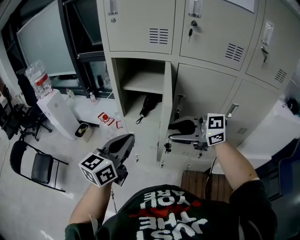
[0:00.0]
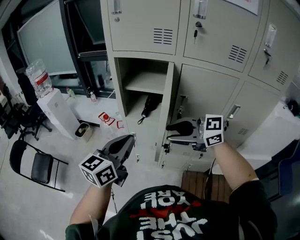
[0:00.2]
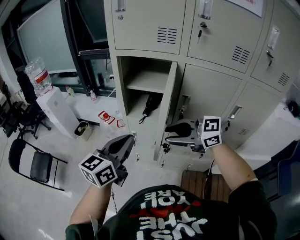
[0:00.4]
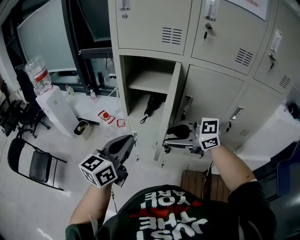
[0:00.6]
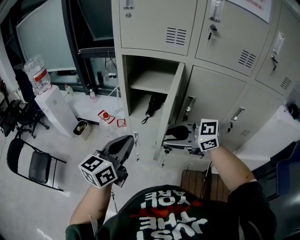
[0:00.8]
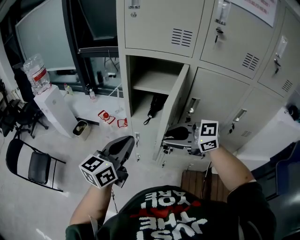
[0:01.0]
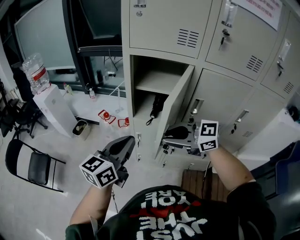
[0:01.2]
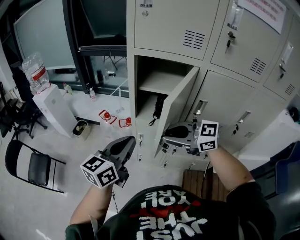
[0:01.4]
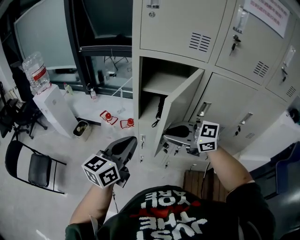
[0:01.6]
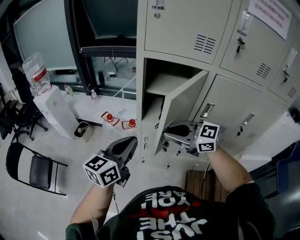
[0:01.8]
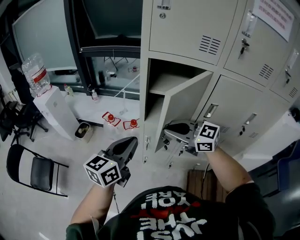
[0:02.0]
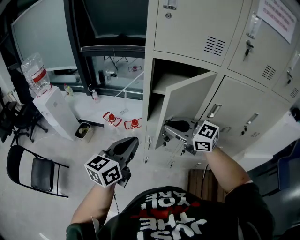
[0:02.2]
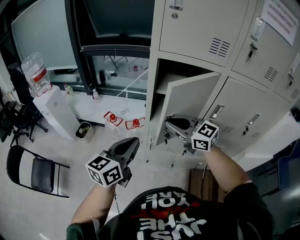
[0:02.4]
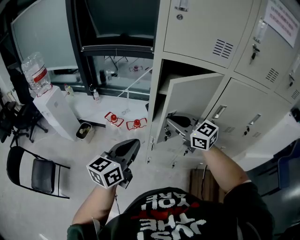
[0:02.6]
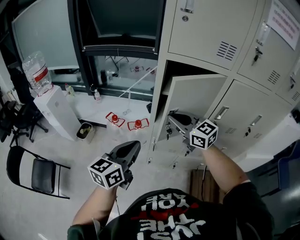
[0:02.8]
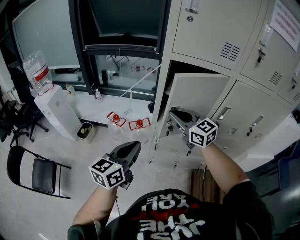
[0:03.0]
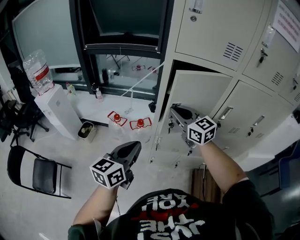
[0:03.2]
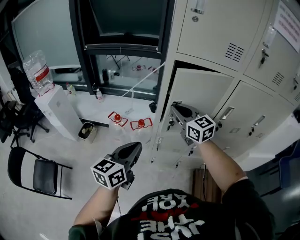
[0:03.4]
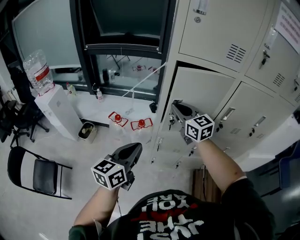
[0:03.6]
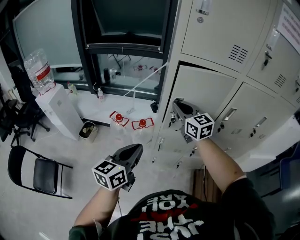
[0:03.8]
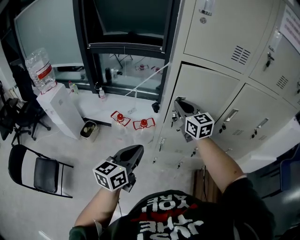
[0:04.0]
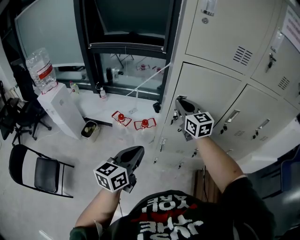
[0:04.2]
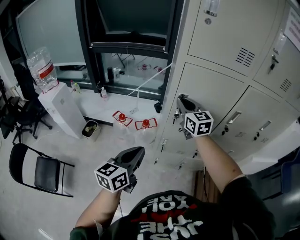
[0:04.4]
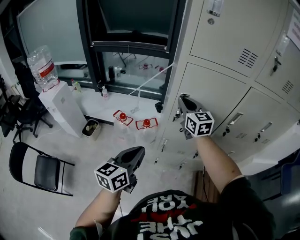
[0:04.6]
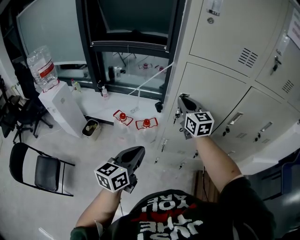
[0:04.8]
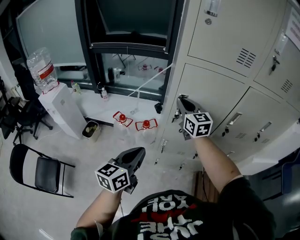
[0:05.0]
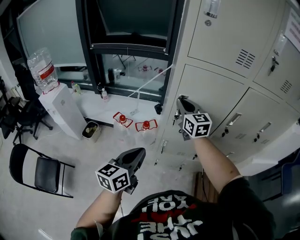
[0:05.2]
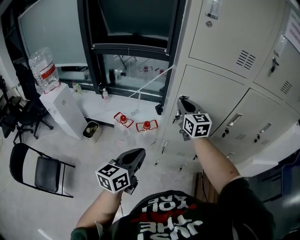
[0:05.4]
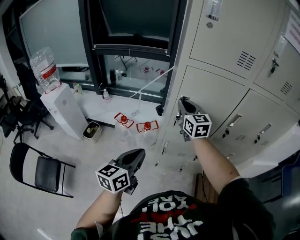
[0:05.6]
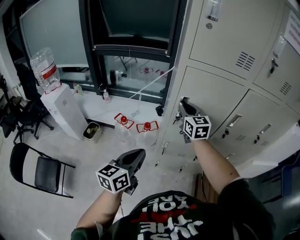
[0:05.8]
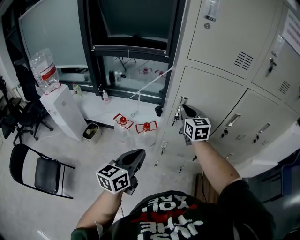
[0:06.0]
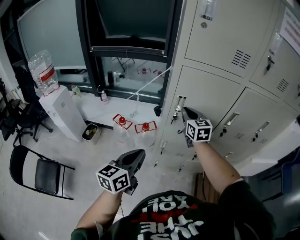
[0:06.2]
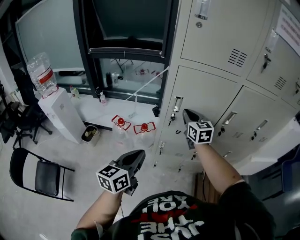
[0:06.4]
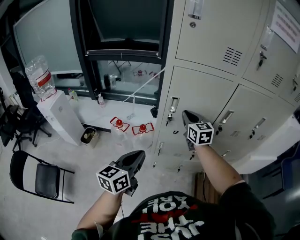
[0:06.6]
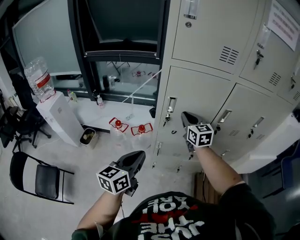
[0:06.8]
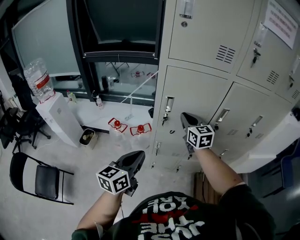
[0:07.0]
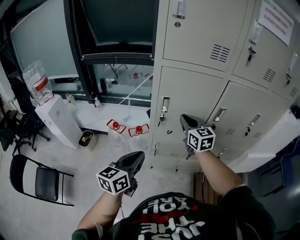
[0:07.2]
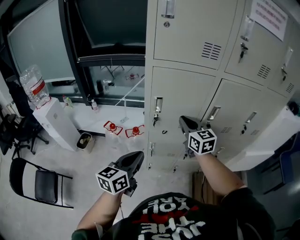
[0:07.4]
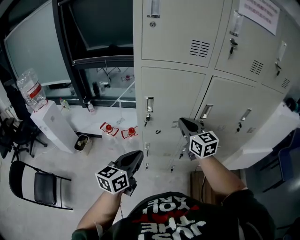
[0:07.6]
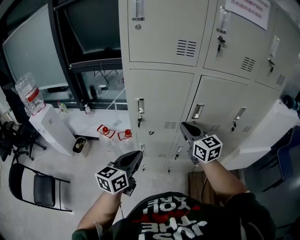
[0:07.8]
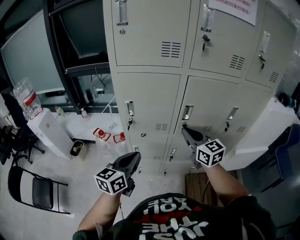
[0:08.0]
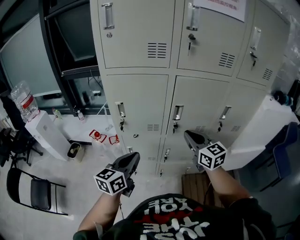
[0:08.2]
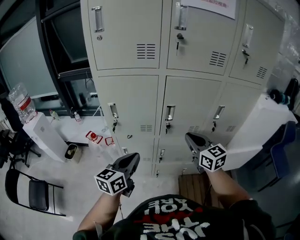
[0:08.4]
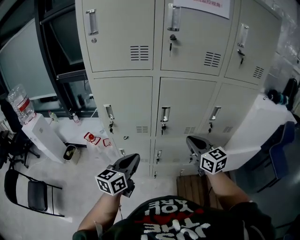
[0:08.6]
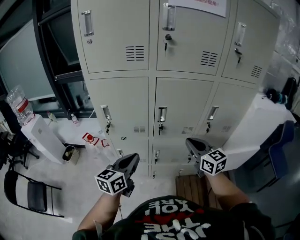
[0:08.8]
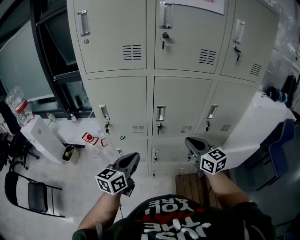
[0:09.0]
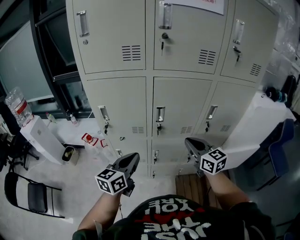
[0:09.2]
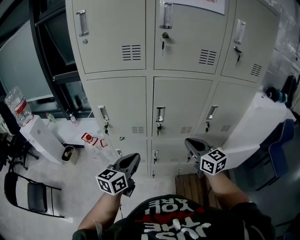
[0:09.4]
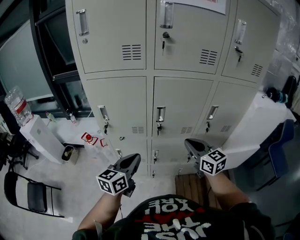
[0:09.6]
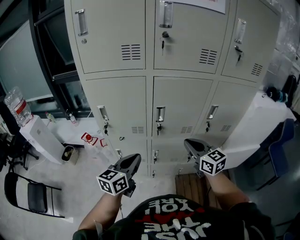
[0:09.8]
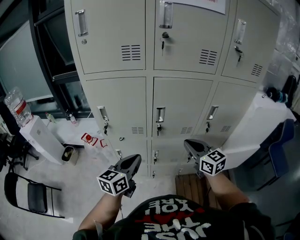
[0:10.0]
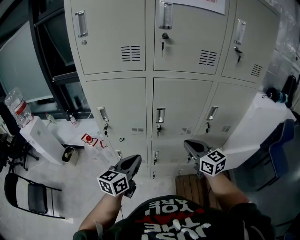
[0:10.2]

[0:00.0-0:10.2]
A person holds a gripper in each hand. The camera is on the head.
0.0 to 1.4 s: Both grippers move to the left and forward, roughly 10 cm. The right gripper closes up.
1.4 to 3.0 s: The left gripper goes approximately 15 cm to the left and forward, while the right gripper shifts about 15 cm forward, and changes its angle by some 40 degrees.
3.0 to 4.4 s: The right gripper moves forward, about 10 cm, and changes its angle by about 20 degrees.
4.4 to 5.8 s: The grippers make only small movements.
5.8 to 7.2 s: The right gripper shifts about 10 cm to the right and backward. The left gripper travels to the right by about 5 cm.
7.2 to 8.8 s: The grippers both shift to the right by approximately 30 cm.
8.8 to 10.2 s: The grippers stay close to where they were, moving slightly.

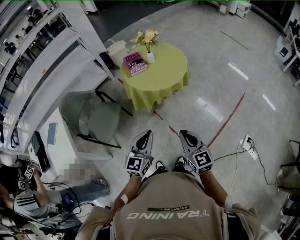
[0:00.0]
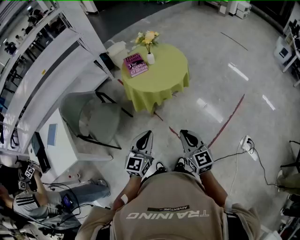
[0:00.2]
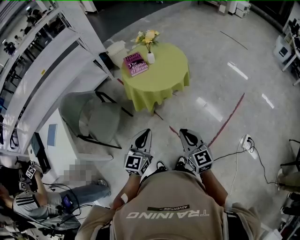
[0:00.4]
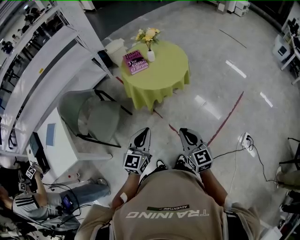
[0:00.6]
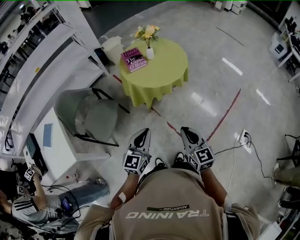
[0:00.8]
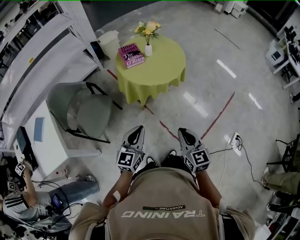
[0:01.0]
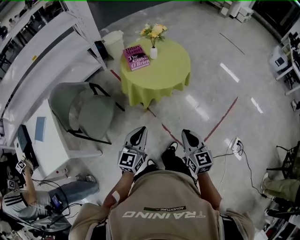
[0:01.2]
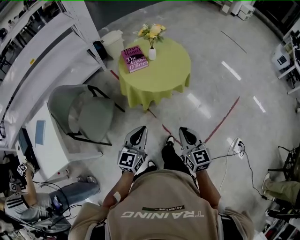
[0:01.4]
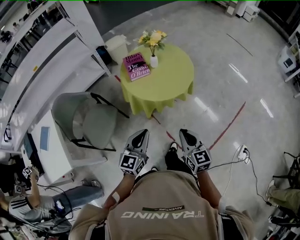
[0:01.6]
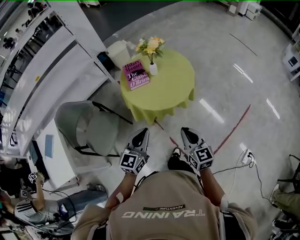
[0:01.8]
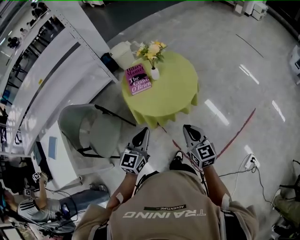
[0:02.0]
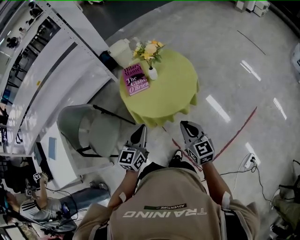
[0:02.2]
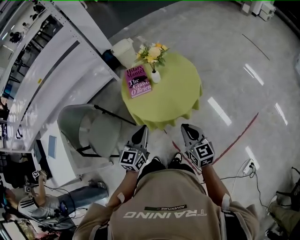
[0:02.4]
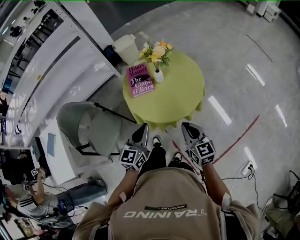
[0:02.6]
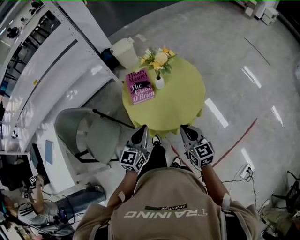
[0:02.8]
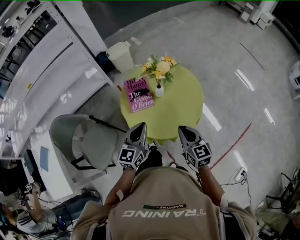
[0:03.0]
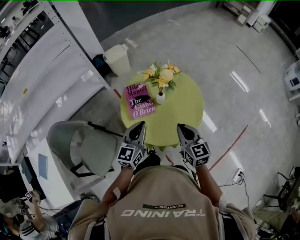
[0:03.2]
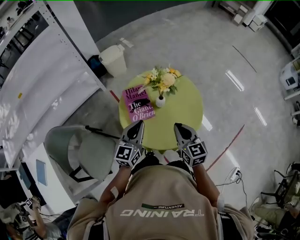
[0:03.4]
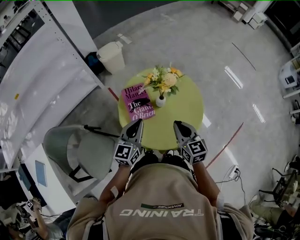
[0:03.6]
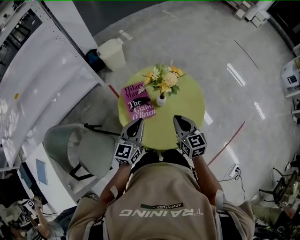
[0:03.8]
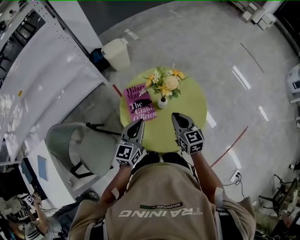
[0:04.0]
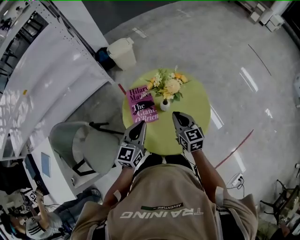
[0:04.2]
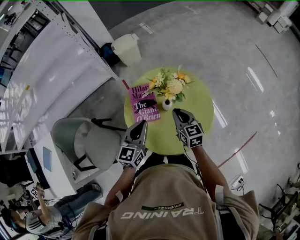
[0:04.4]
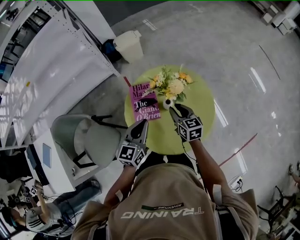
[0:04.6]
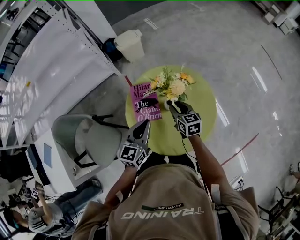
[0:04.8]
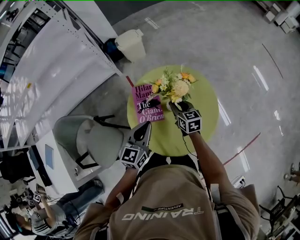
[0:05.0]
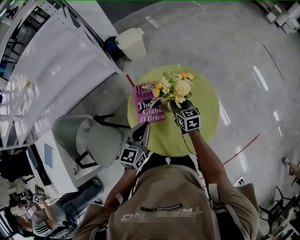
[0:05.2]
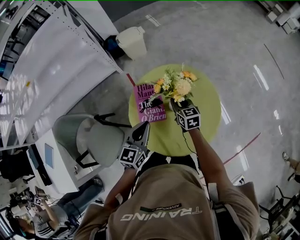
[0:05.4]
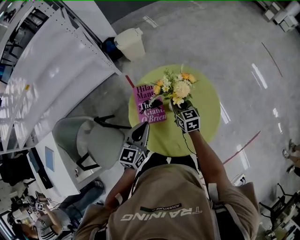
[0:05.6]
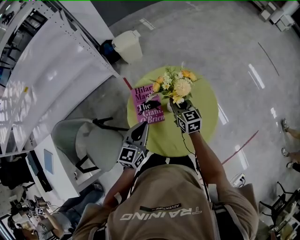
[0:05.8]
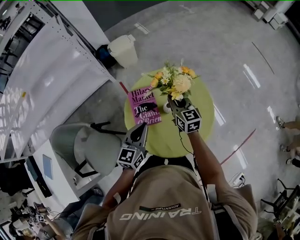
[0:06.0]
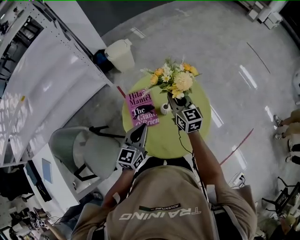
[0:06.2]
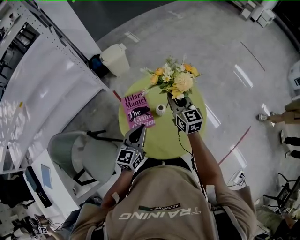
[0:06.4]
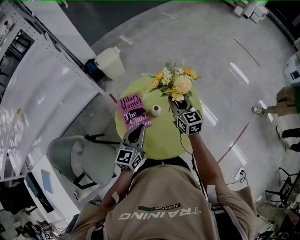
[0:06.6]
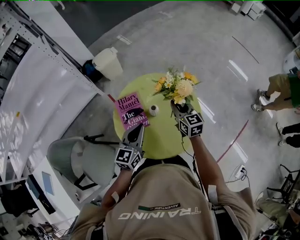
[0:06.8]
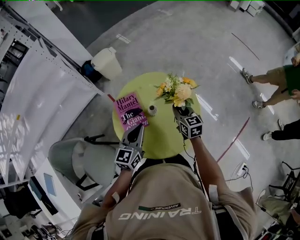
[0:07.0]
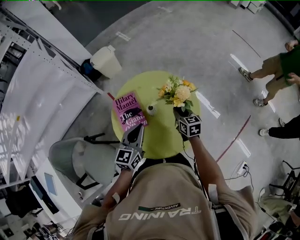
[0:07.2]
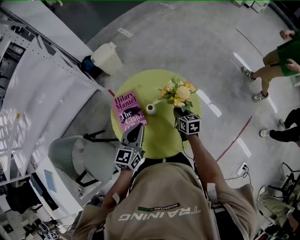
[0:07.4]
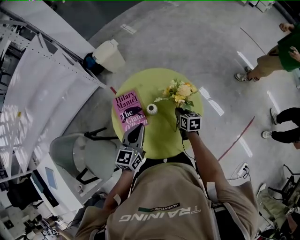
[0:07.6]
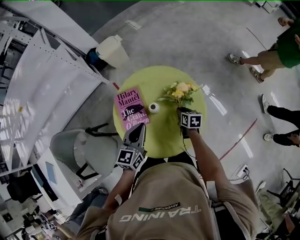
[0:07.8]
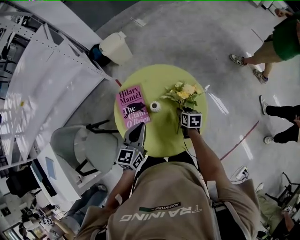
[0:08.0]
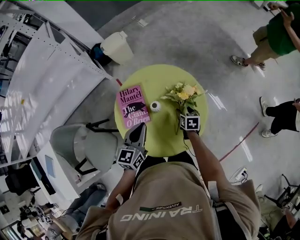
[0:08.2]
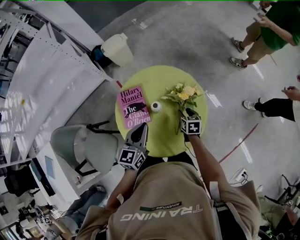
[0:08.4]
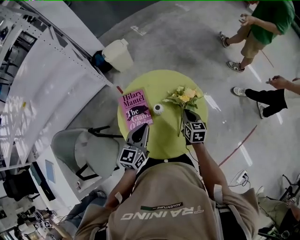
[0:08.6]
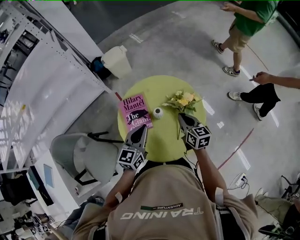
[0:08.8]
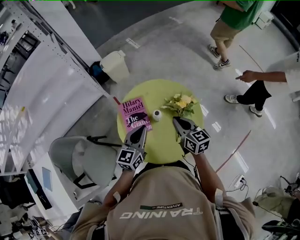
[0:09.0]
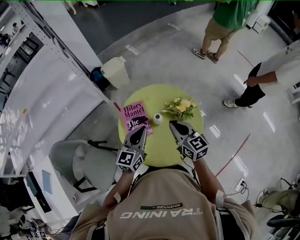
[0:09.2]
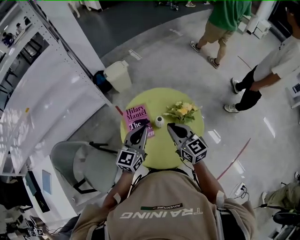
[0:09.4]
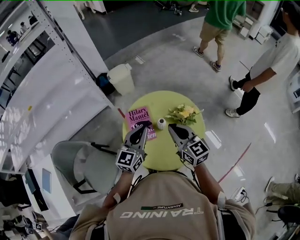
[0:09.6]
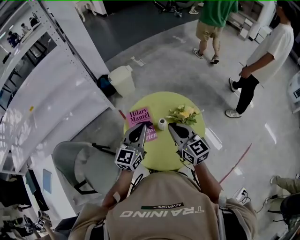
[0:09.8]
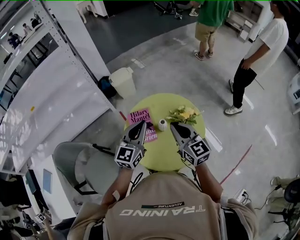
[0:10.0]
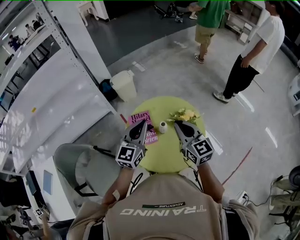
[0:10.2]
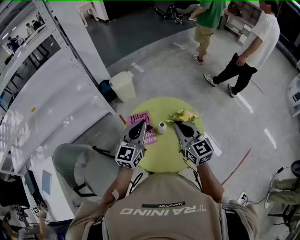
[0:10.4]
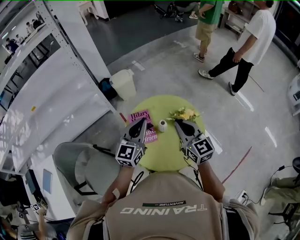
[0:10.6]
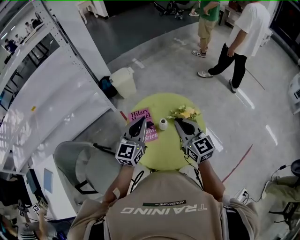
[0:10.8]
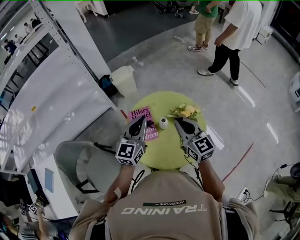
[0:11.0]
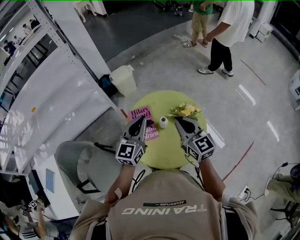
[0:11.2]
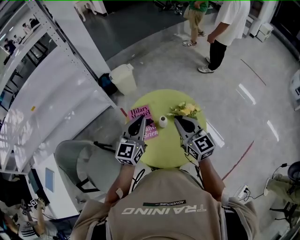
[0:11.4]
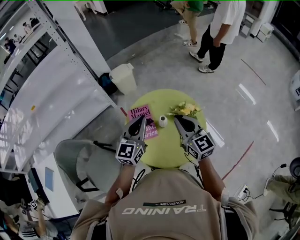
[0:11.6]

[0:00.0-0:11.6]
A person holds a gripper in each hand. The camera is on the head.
0.0 to 1.4 s: The left gripper moves forward and to the left, roughly 10 cm; the right gripper moves forward, approximately 10 cm.
1.4 to 2.8 s: The grippers both shift forward by approximately 30 cm.
2.8 to 4.4 s: Both grippers move forward, some 25 cm.
4.4 to 5.8 s: The right gripper heads forward, covering about 10 cm.
5.8 to 7.2 s: The left gripper goes some 10 cm to the right. Meanwhile the right gripper travels to the right by roughly 15 cm.
7.2 to 8.8 s: The right gripper travels upward by about 5 cm, and opens, then closes again.
8.8 to 10.2 s: Both grippers travel together upward, roughly 15 cm. The right gripper swivels approximately 30 degrees.
10.2 to 11.6 s: Both grippers stay about where they are.

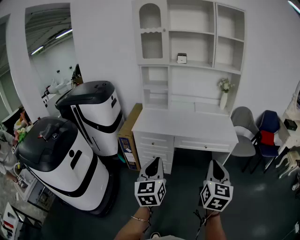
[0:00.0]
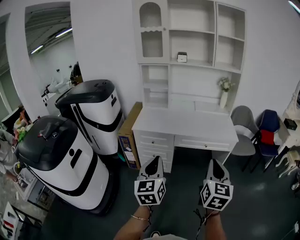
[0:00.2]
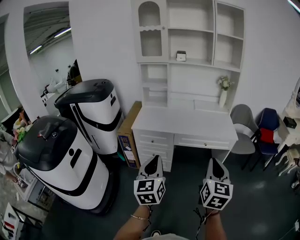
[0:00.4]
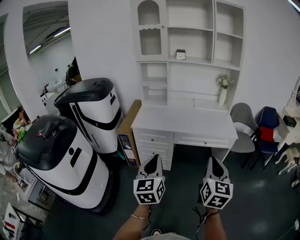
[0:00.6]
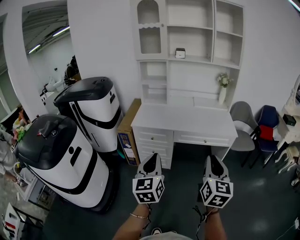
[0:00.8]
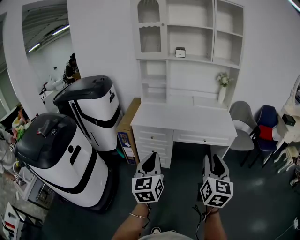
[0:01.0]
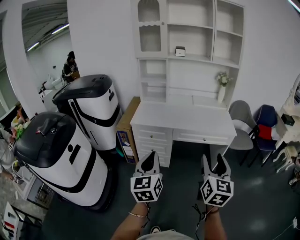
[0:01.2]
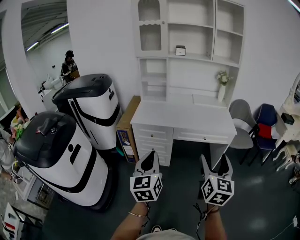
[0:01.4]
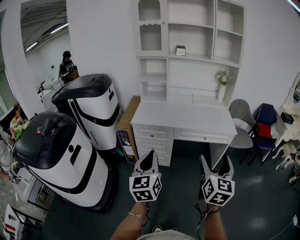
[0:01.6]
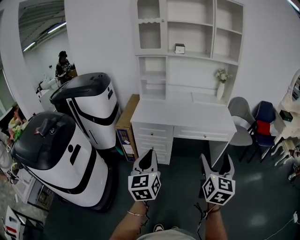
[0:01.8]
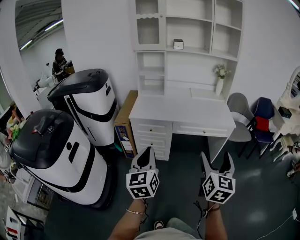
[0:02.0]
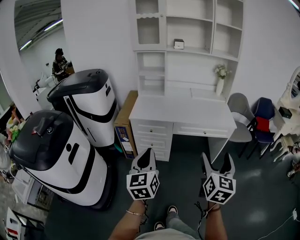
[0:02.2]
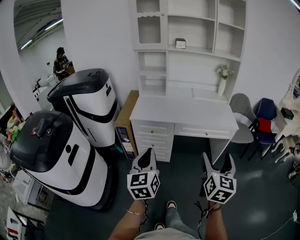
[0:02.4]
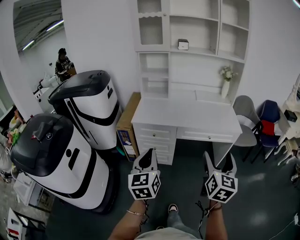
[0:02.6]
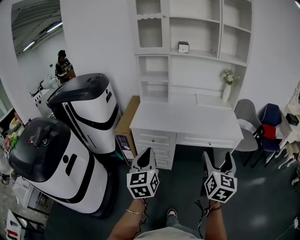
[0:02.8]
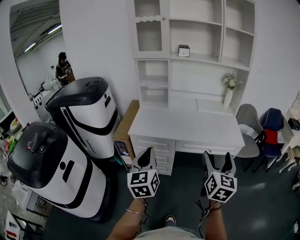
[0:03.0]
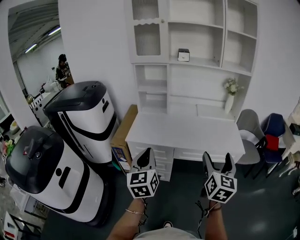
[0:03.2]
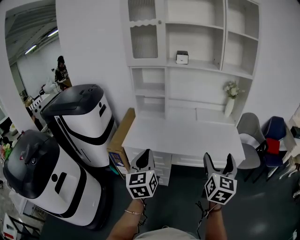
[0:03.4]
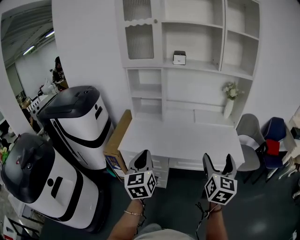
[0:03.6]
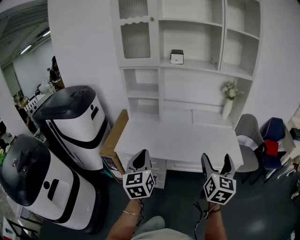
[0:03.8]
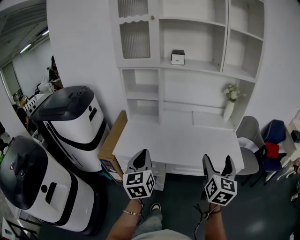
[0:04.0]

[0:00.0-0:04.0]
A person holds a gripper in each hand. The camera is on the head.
0.0 to 1.4 s: The right gripper opens its fingers.
1.4 to 2.6 s: The two grippers go roughly 5 cm forward.
2.6 to 4.0 s: Both grippers travel together forward, approximately 30 cm.
